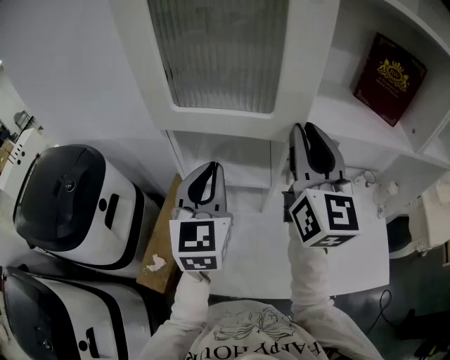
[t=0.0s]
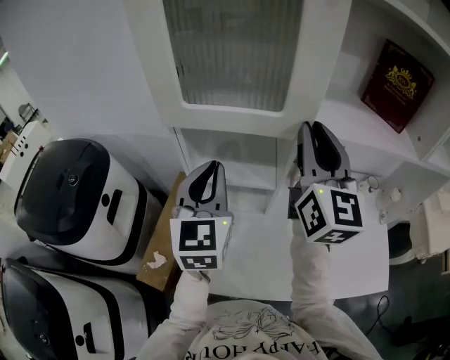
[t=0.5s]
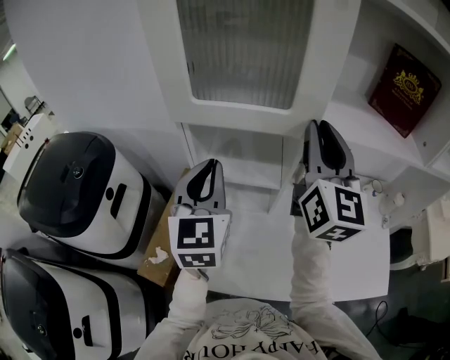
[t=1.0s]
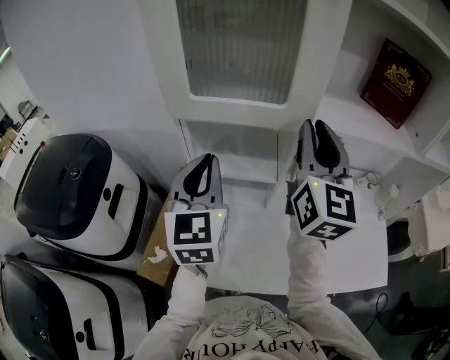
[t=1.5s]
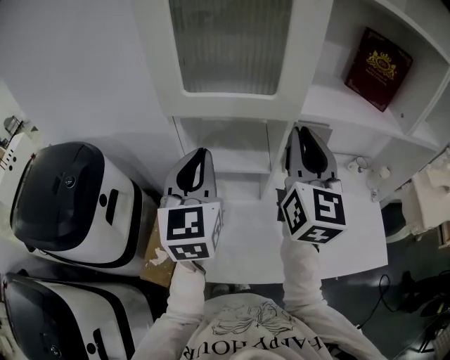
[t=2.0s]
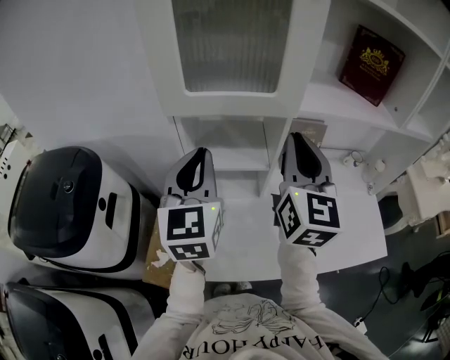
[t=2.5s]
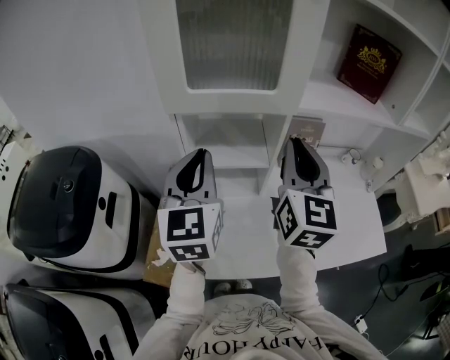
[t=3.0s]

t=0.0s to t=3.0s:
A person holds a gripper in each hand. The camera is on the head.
t=0.0s to t=1.5s: The grippers move only a little.
t=1.5s to t=3.0s: The right gripper travels backward by some 5 cm.

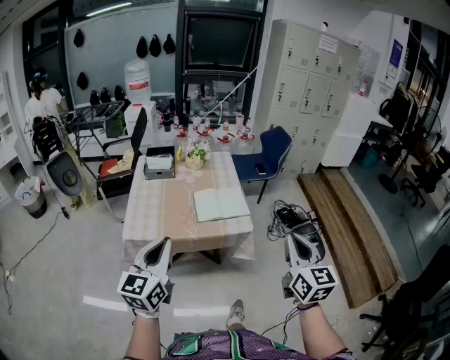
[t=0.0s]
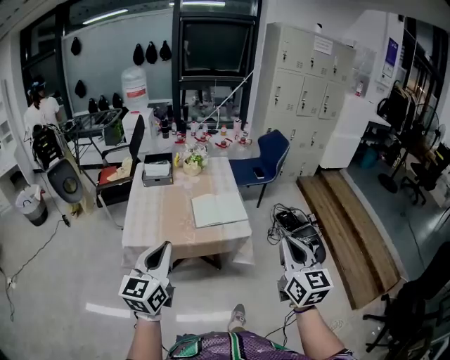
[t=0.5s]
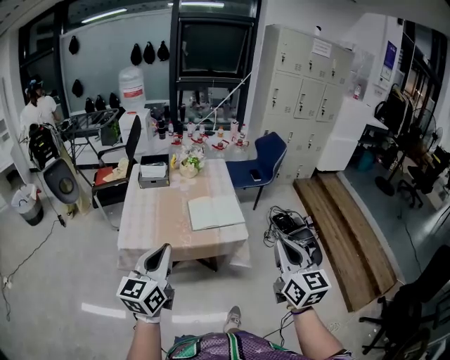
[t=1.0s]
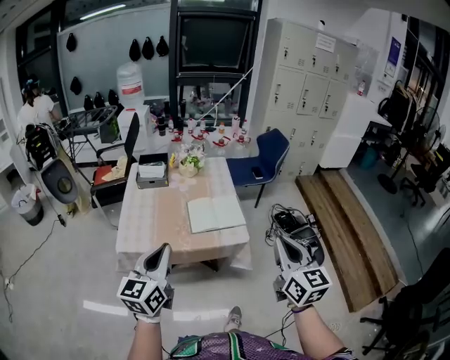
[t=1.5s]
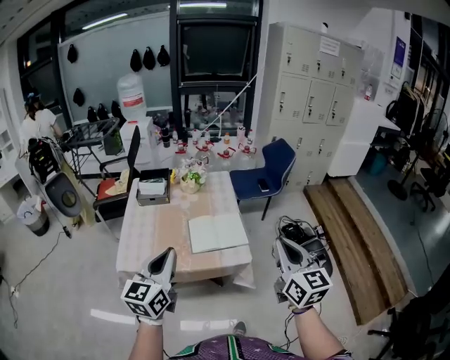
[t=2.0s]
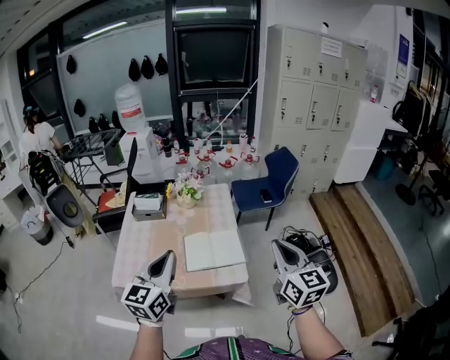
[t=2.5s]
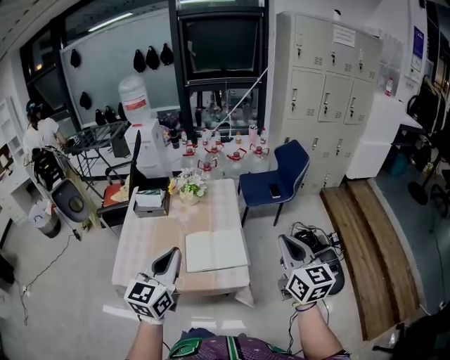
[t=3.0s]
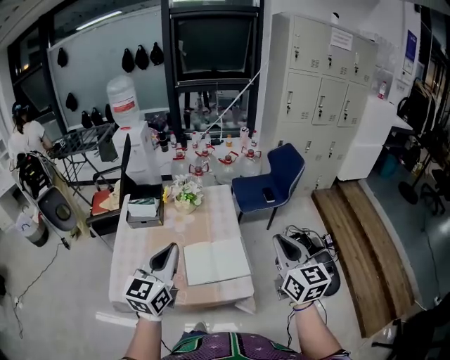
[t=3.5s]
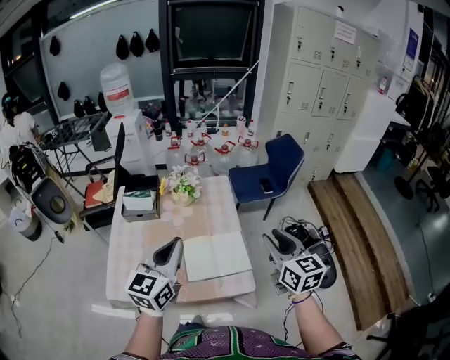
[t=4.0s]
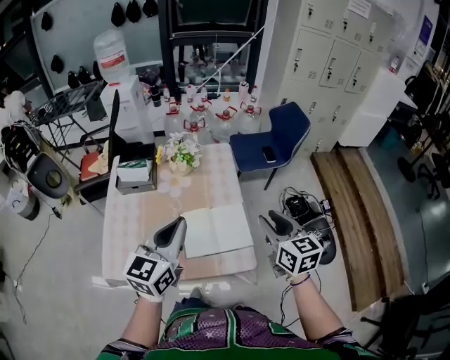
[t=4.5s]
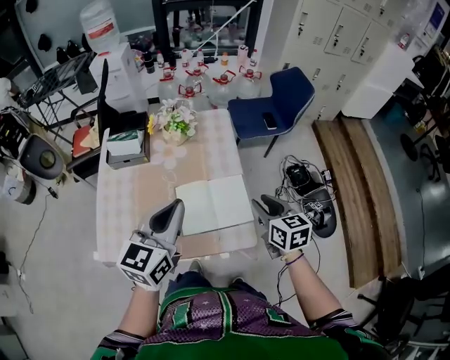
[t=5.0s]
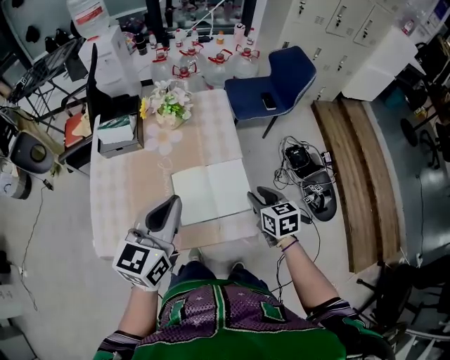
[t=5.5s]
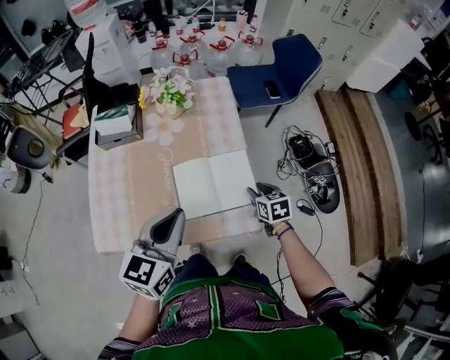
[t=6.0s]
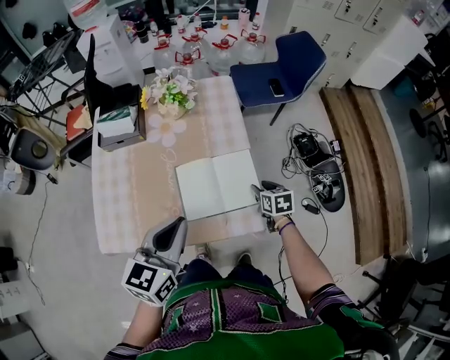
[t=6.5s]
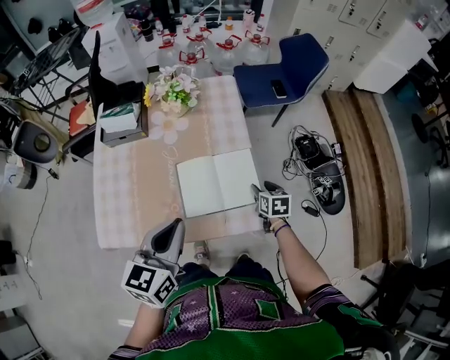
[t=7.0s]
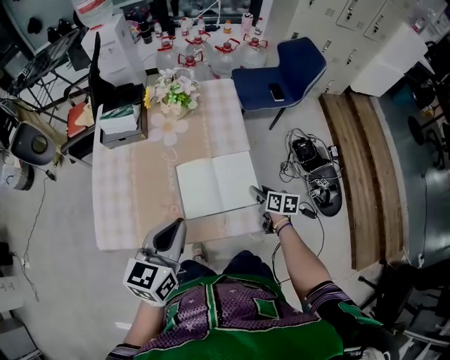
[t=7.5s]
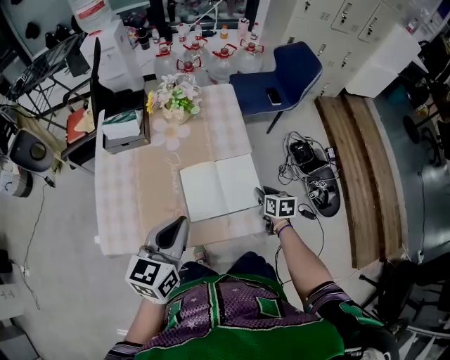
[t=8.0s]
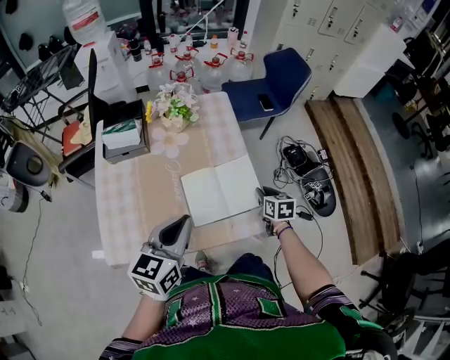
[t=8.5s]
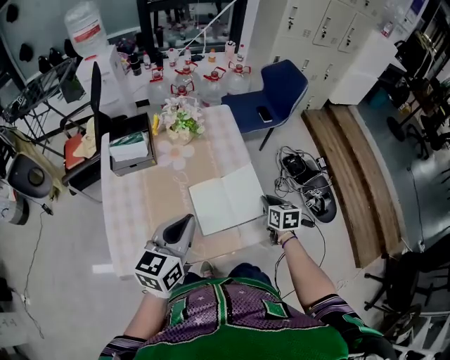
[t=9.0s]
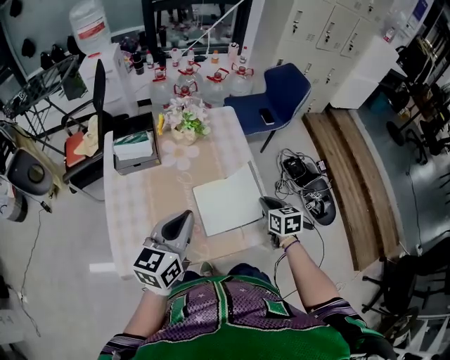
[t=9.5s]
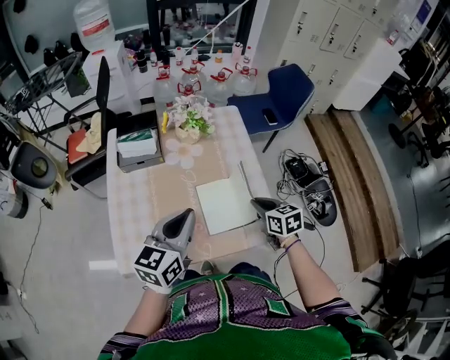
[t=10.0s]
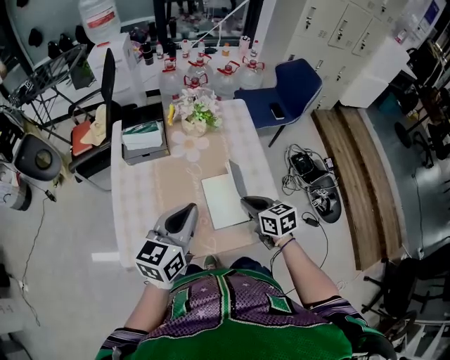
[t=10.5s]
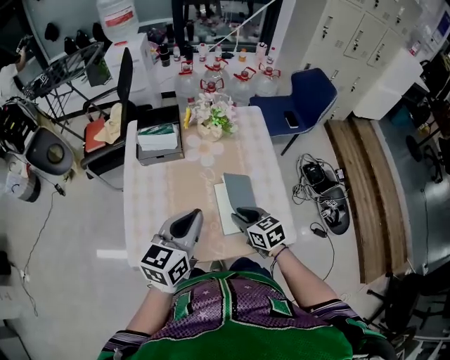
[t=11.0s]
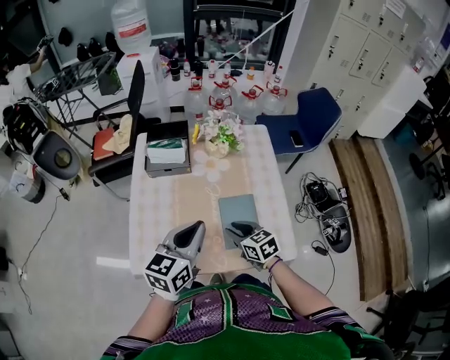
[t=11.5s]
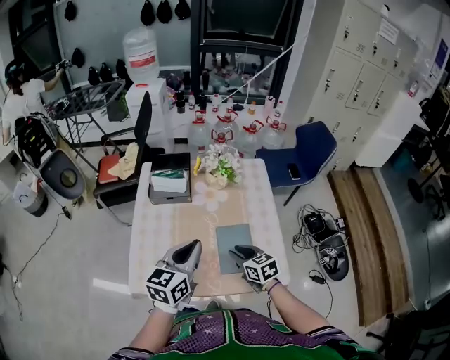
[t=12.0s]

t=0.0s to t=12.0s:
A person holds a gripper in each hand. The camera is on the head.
t=0.0s to t=2.0s: The grippers both shift forward by about 15 cm.
t=2.0s to t=4.0s: The two grippers go roughly 25 cm forward. The right gripper opens up.
t=4.0s to t=6.0s: The left gripper shifts some 15 cm downward. Meanwhile the right gripper is displaced downward by roughly 35 cm, and tips its fingers downward by some 40 degrees.
t=8.0s to t=10.0s: The left gripper goes some 10 cm to the left. Meanwhile the right gripper moves upward and to the left, about 15 cm.
t=10.0s to t=12.0s: The right gripper goes about 15 cm to the left.

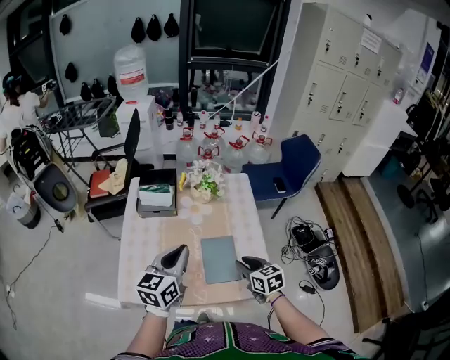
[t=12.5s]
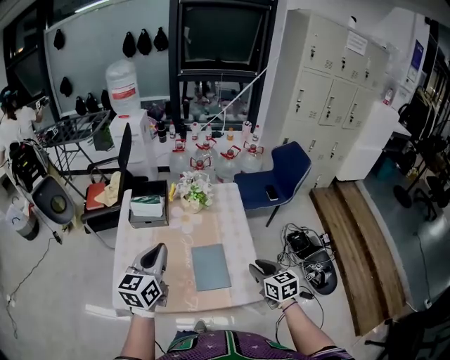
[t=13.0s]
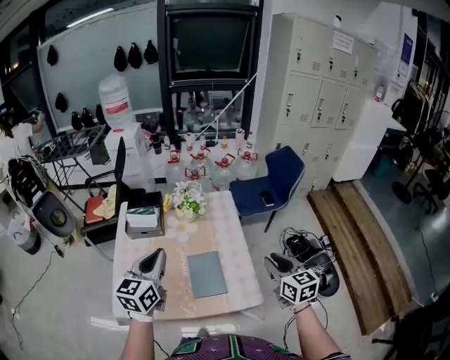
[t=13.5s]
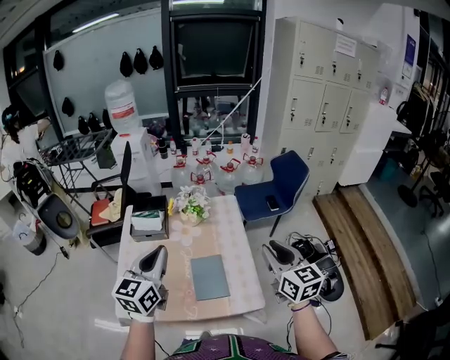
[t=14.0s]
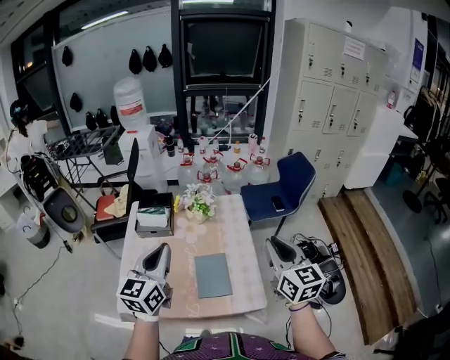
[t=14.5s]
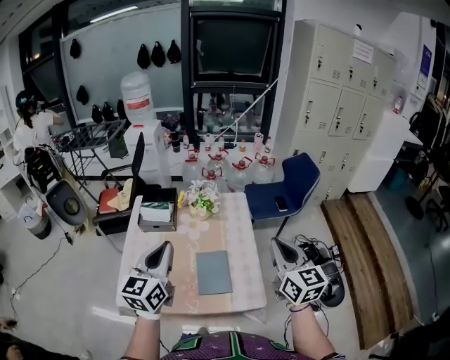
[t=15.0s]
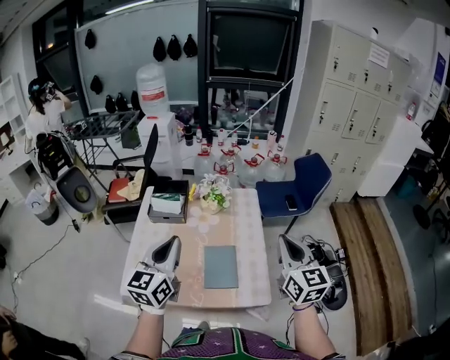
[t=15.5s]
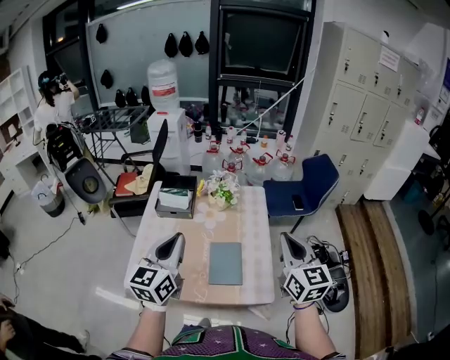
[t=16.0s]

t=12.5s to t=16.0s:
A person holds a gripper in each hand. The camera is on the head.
t=12.5s to t=14.5s: The right gripper shifts roughly 30 cm upward and to the right, and turns by roughly 30 degrees; the left gripper travels upward by some 10 cm.
t=14.5s to t=16.0s: The grippers stay close to where they were, moving slightly.

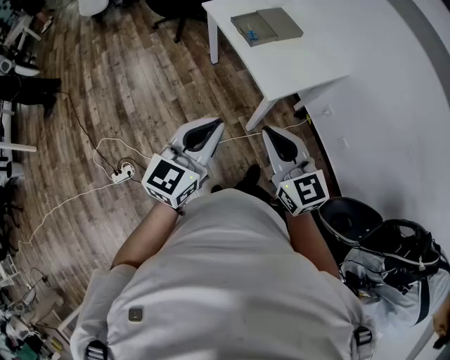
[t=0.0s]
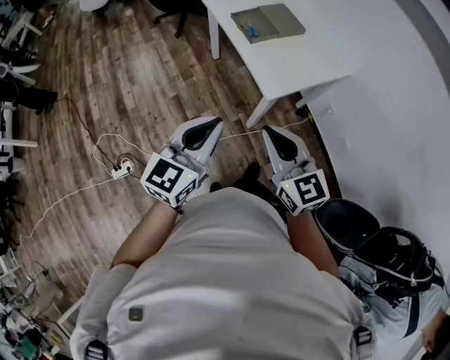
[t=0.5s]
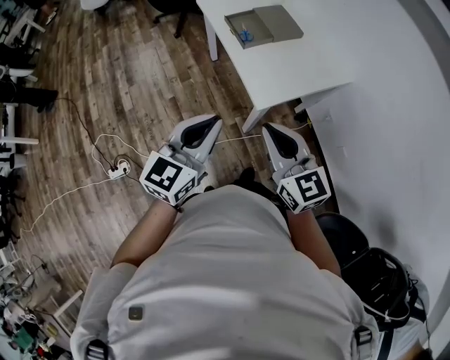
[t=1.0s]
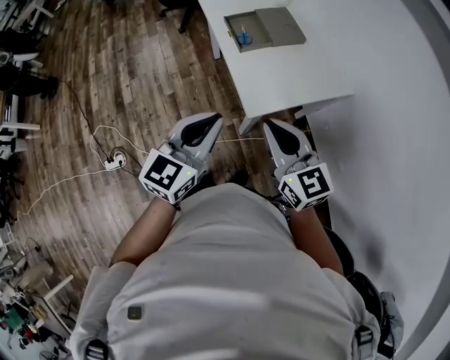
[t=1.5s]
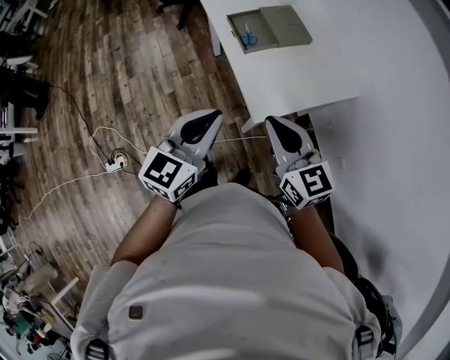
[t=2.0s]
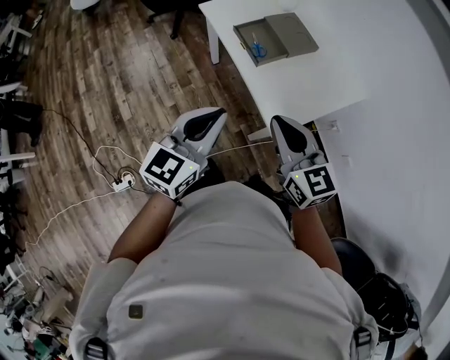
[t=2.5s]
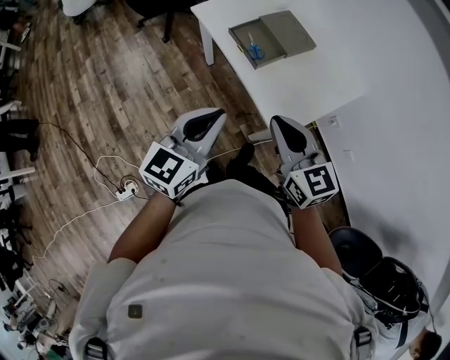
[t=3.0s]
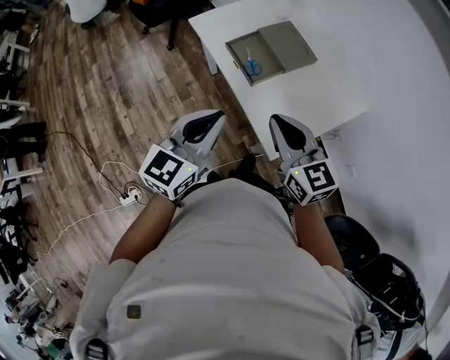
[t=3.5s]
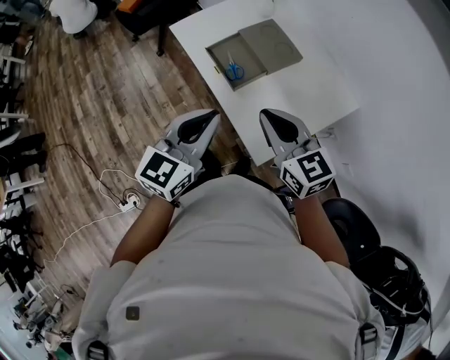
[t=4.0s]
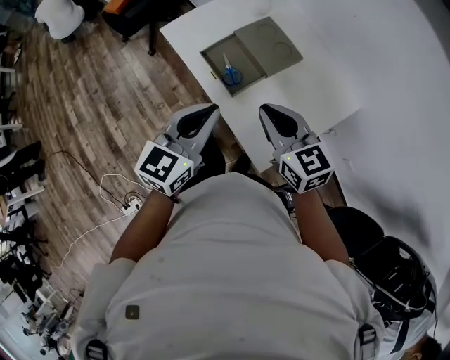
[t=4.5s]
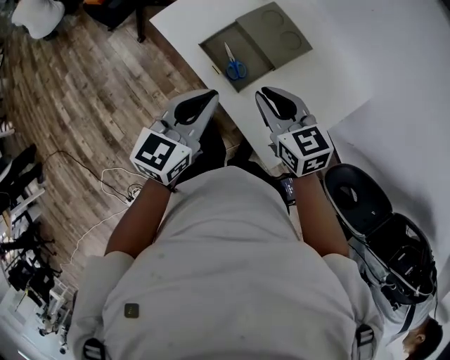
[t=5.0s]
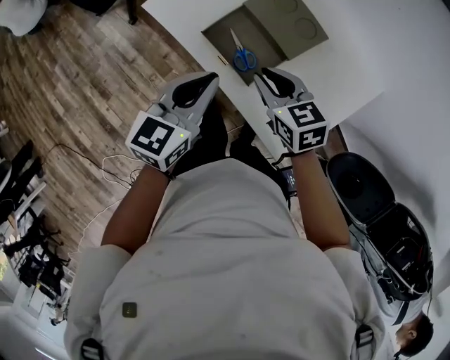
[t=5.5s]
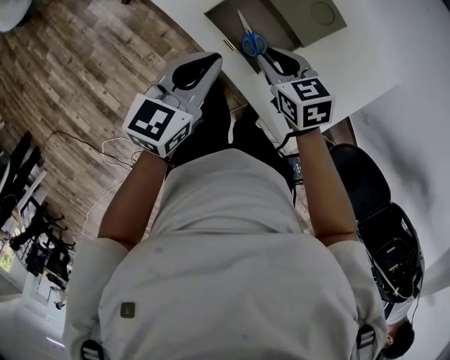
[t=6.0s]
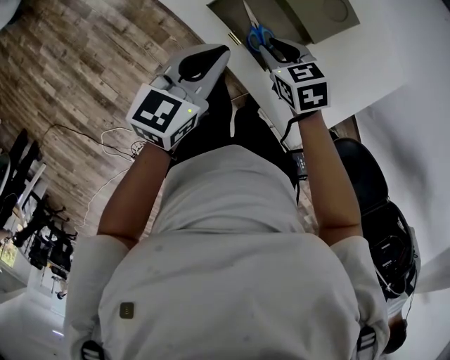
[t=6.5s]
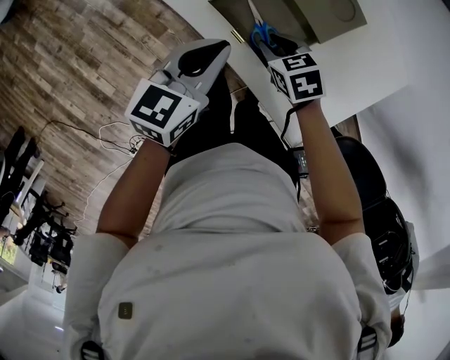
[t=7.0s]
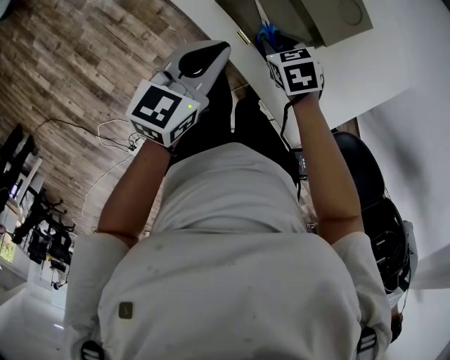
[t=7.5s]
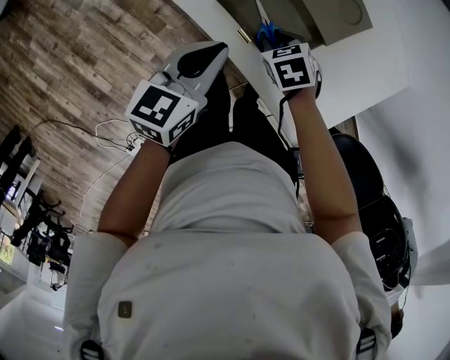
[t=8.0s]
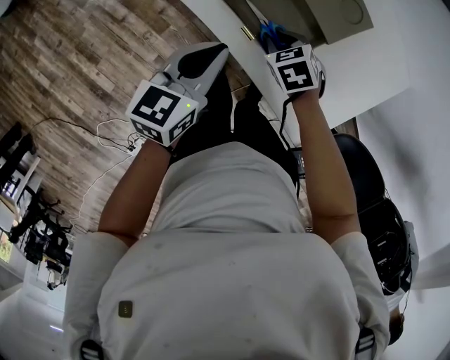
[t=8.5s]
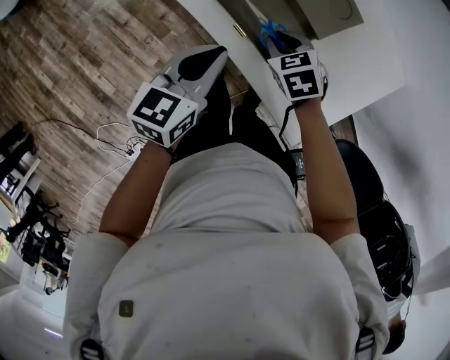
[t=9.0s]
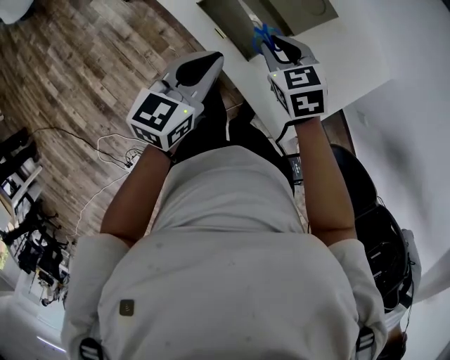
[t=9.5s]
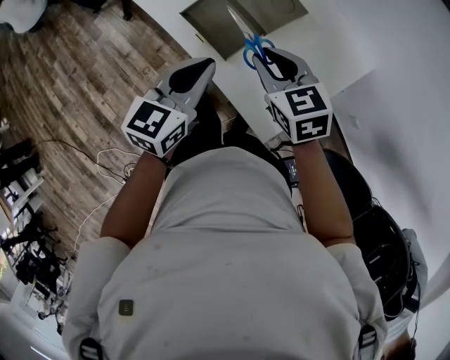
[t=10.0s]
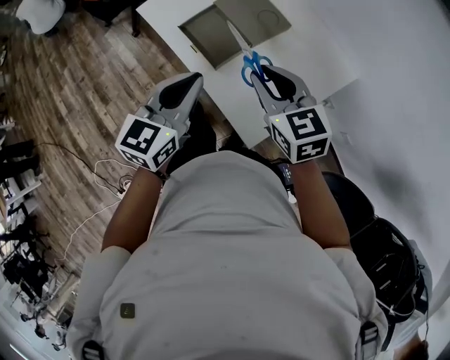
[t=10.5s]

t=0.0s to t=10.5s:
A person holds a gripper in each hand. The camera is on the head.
t=0.0s to t=2.0s: Both grippers travel together forward and to the right, roughly 25 cm.
t=2.0s to t=4.0s: Both grippers move forward, about 20 cm.
t=4.0s to t=6.5s: The left gripper moves forward and downward, approximately 30 cm, and rotates roughly 20 degrees, while the right gripper goes some 35 cm downward and forward, tips its fingers downward by some 40 degrees, and opens up.
t=6.5s to t=8.5s: The right gripper heads downward, covering some 5 cm.
t=8.5s to t=10.5s: Both grippers travel together upward, backward and to the right, some 30 cm. The right gripper tilts its fingers roughly 40 degrees upward, while the left gripper turns by roughly 20 degrees.
